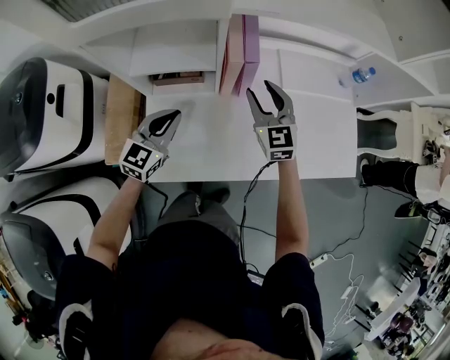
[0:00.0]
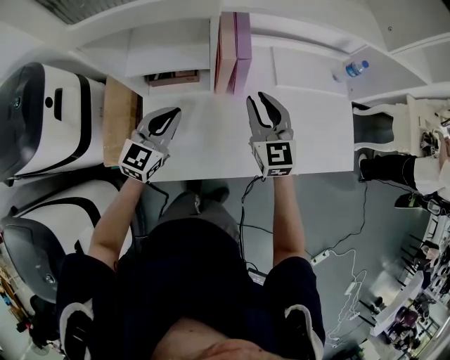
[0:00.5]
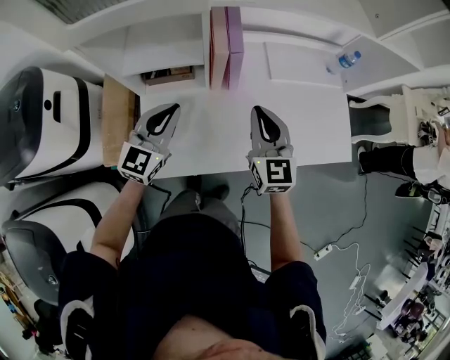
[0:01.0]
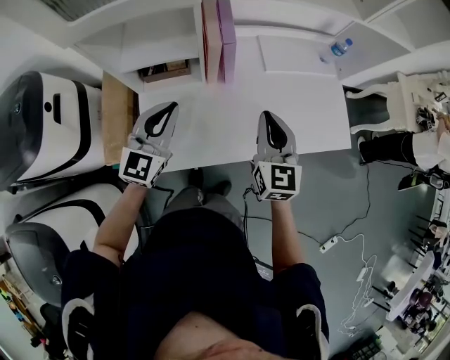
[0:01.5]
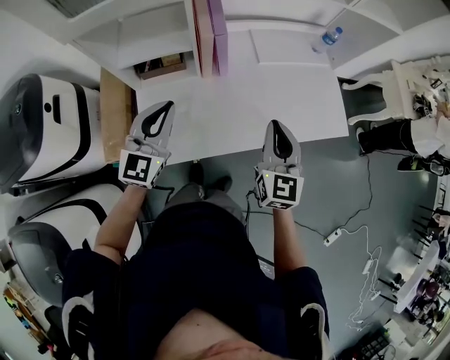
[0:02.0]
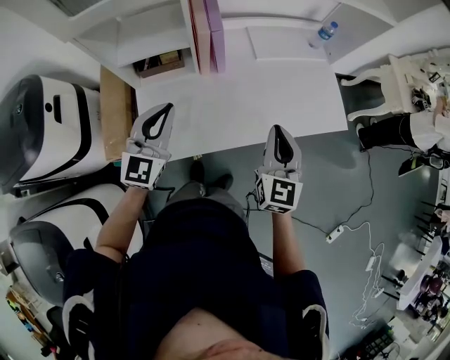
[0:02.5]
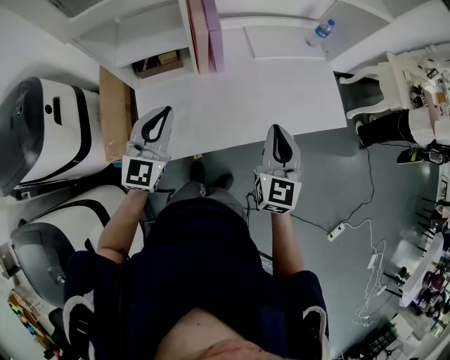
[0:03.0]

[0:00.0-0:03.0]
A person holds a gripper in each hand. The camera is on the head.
0:00.0 to 0:01.5: The left gripper goes approximately 10 cm upward. The right gripper is displaced backward, to the right and upward by roughly 20 cm, rotates roughly 20 degrees, and closes.
0:01.5 to 0:03.0: The right gripper is displaced backward and to the right by roughly 10 cm; the left gripper travels backward by about 5 cm.

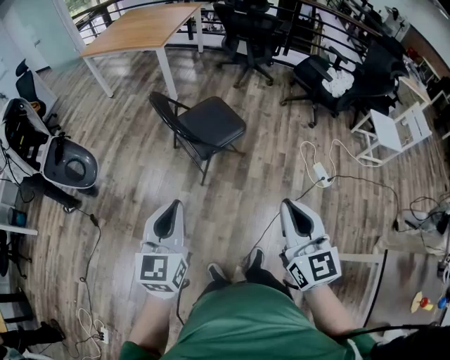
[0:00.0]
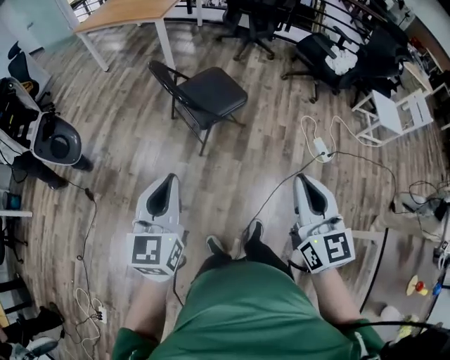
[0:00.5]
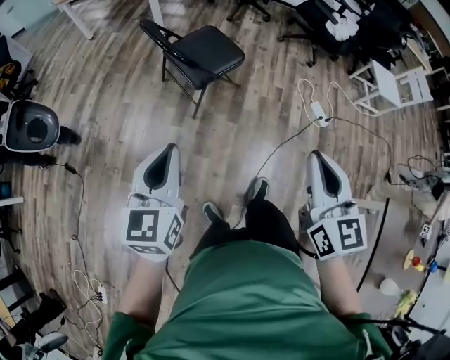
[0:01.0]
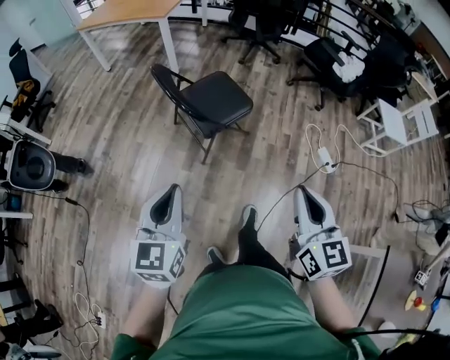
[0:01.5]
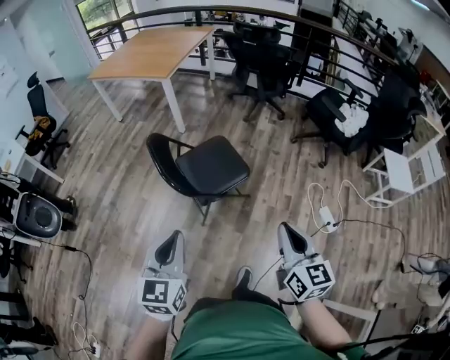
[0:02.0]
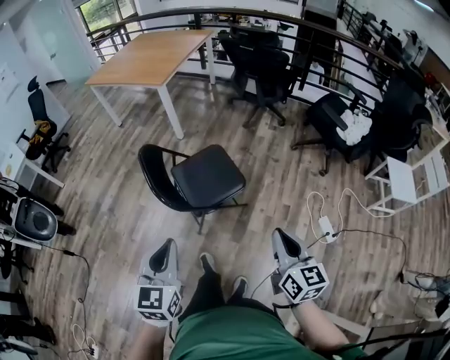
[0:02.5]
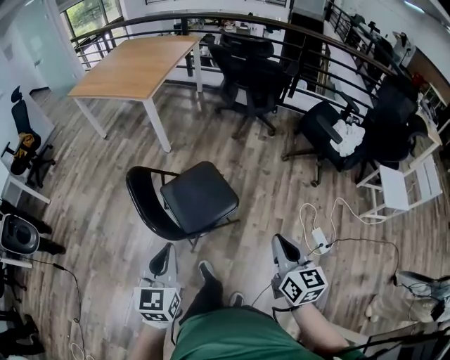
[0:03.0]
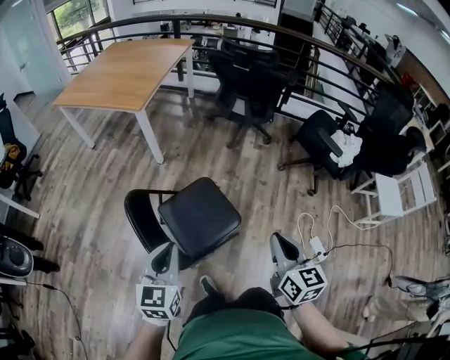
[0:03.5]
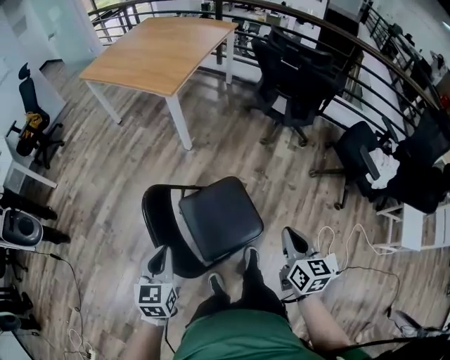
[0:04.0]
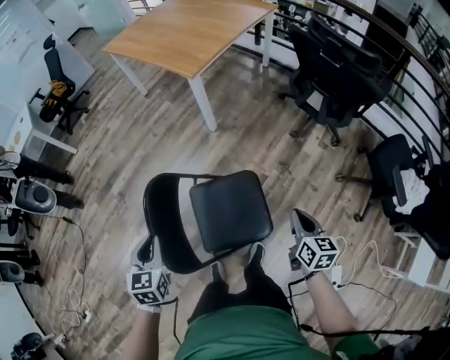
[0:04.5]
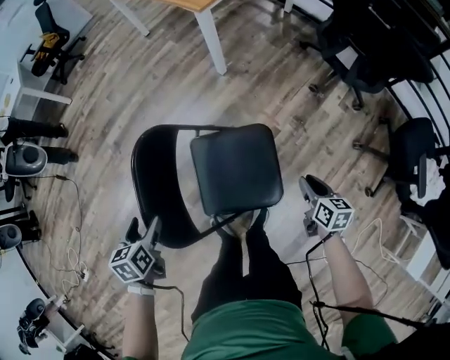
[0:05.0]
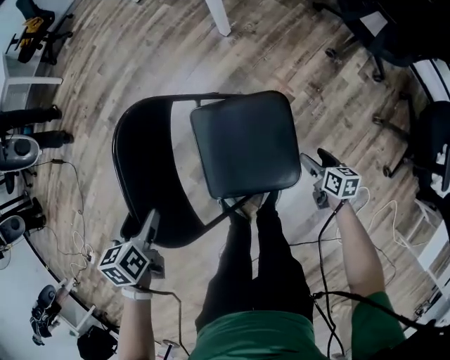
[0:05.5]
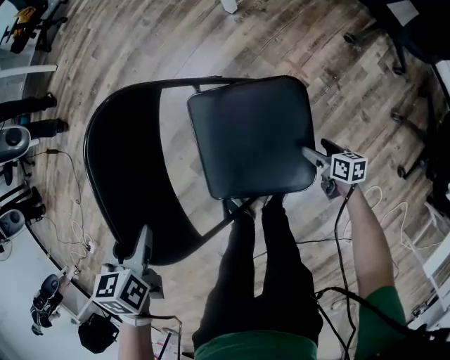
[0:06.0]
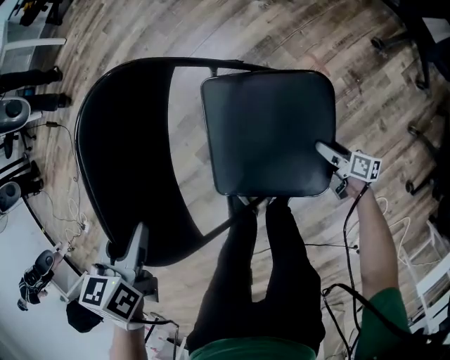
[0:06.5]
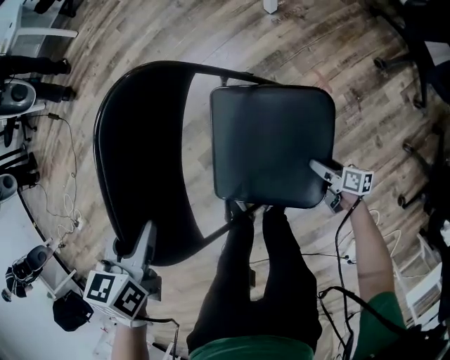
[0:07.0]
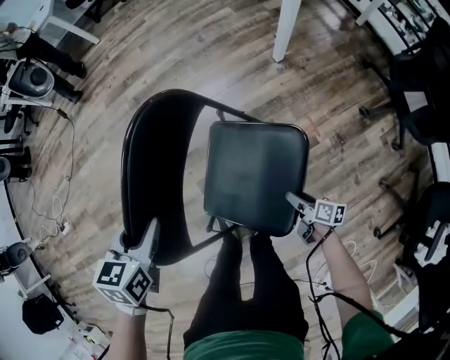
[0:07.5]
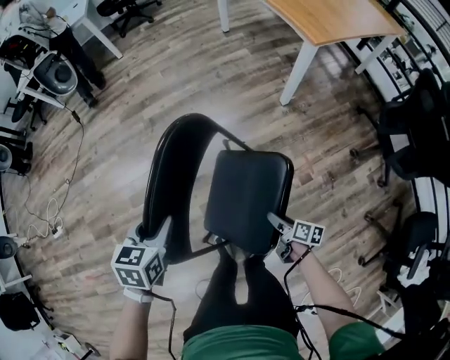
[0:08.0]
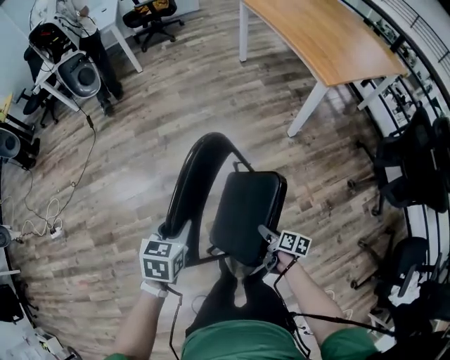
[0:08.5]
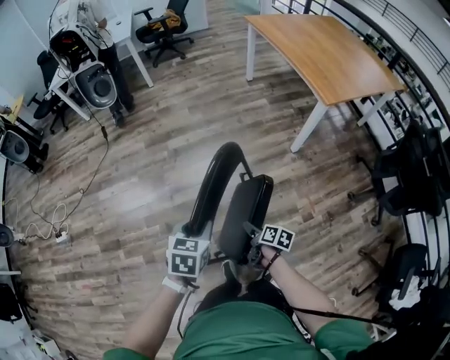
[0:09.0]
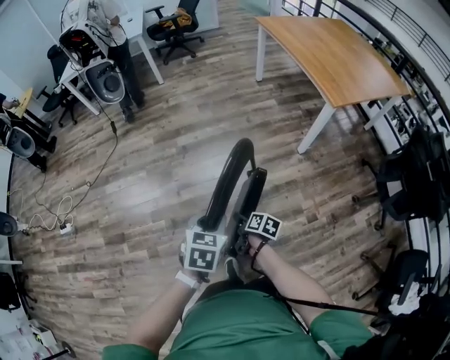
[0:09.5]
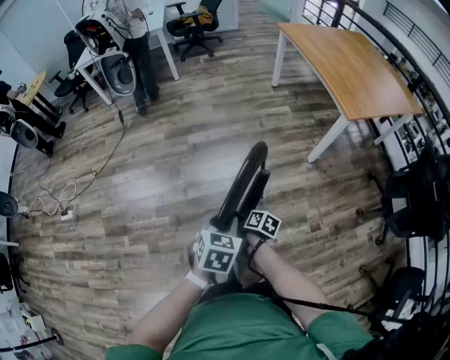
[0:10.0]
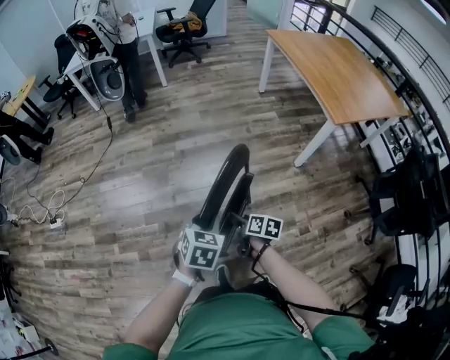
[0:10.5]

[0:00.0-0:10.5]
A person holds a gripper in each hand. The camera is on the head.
0:00.0 to 0:02.0: Both grippers travel together forward and to the right, some 20 cm.
0:02.0 to 0:04.0: Both grippers travel together forward, roughly 40 cm.
0:04.0 to 0:06.5: The right gripper heads downward, covering approximately 60 cm, swivels roughly 60 degrees, and opens its fingers; the left gripper travels downward by about 25 cm, changes its angle by approximately 40 degrees, and opens.
0:06.5 to 0:08.5: The left gripper heads upward and to the left, covering roughly 20 cm, while the right gripper shifts about 40 cm upward and to the left.
0:08.5 to 0:10.5: The right gripper is displaced to the left, upward and forward by approximately 25 cm. Meanwhile the left gripper heads upward, covering about 5 cm.

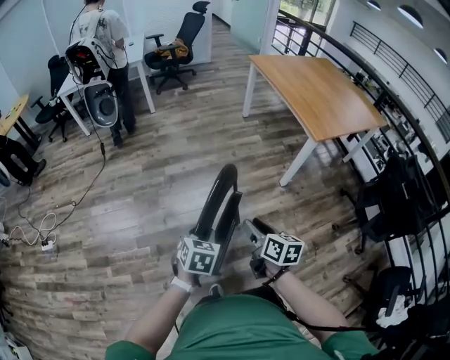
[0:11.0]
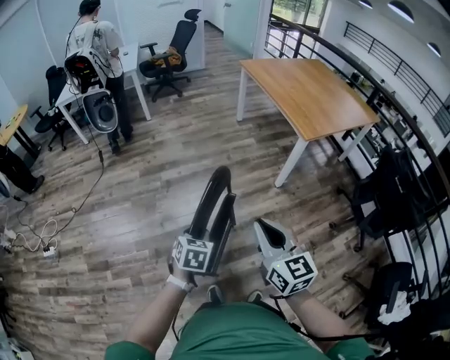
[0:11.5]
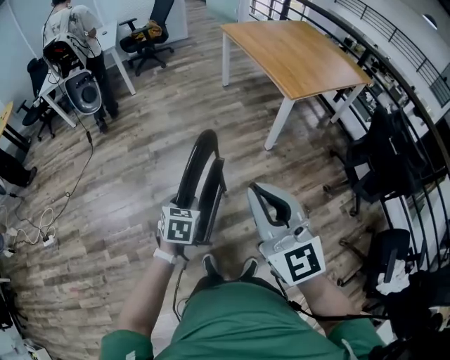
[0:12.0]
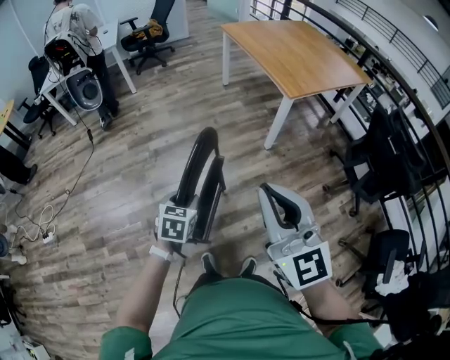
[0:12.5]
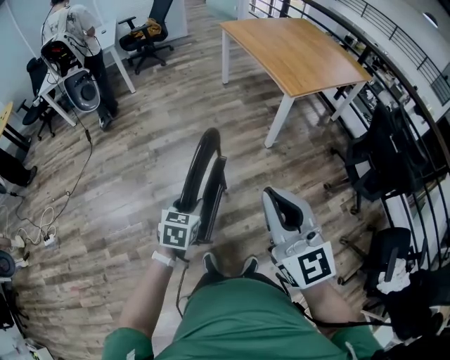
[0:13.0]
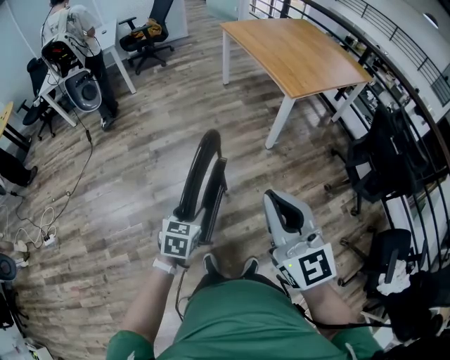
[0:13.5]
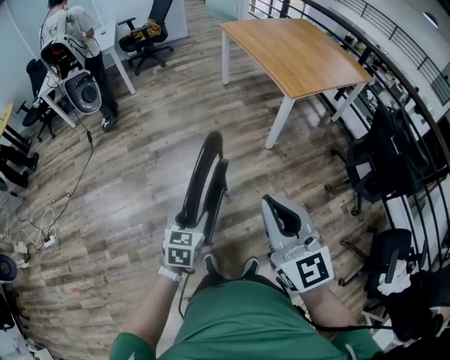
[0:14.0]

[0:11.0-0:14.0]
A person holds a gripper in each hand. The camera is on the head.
0:11.0 to 0:12.5: The right gripper travels upward and backward by some 30 cm, rotates around the line of its fingers by about 50 degrees, counterclockwise from behind, and closes up; the left gripper travels to the right by some 10 cm.
0:12.5 to 0:14.0: The grippers stay close to where they were, moving slightly.

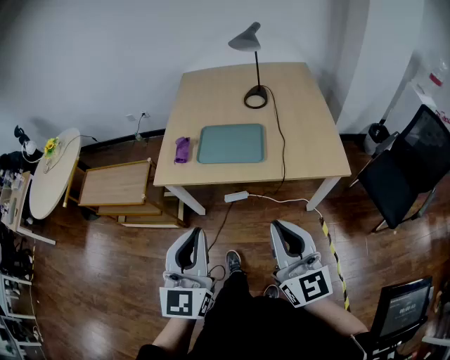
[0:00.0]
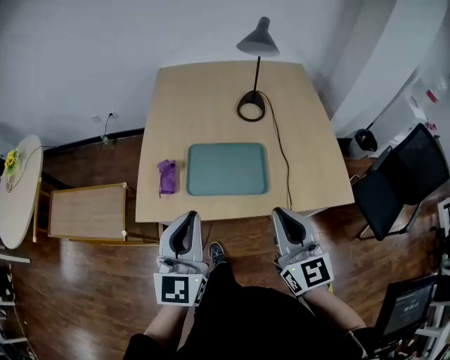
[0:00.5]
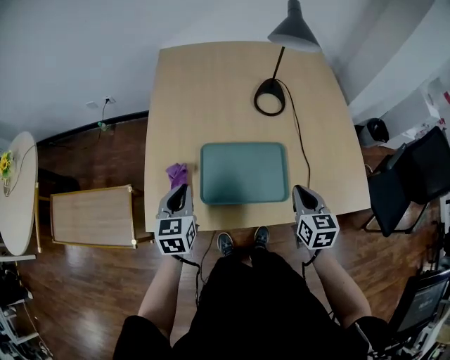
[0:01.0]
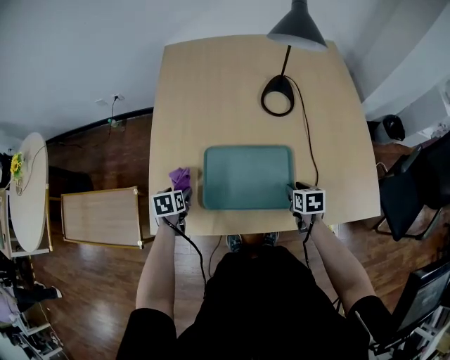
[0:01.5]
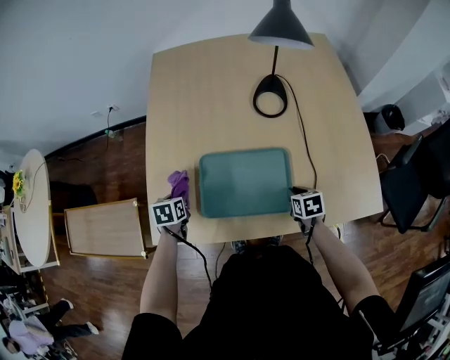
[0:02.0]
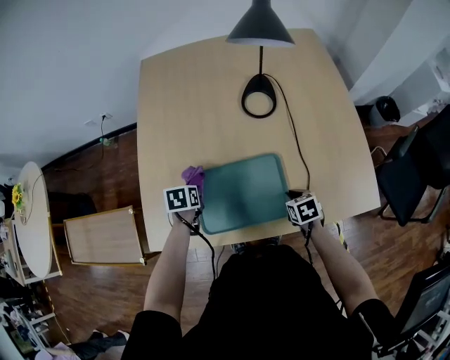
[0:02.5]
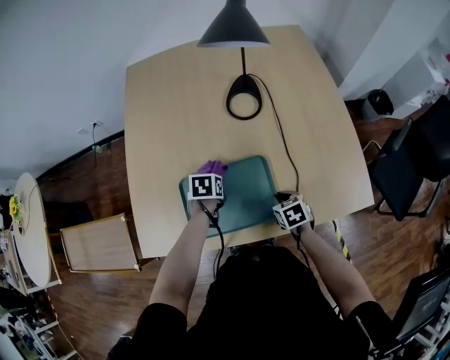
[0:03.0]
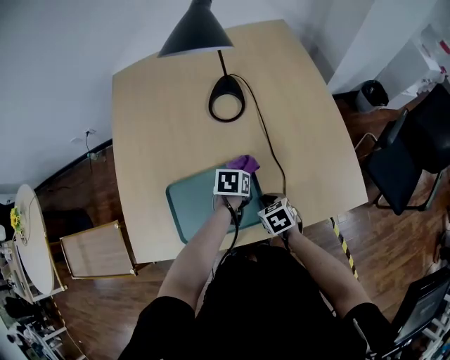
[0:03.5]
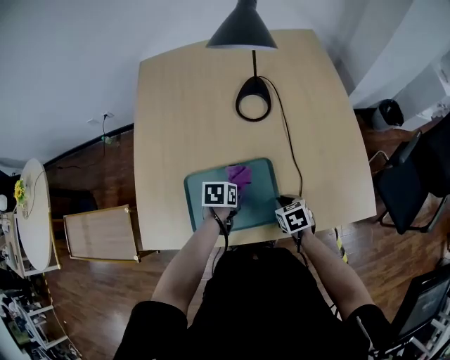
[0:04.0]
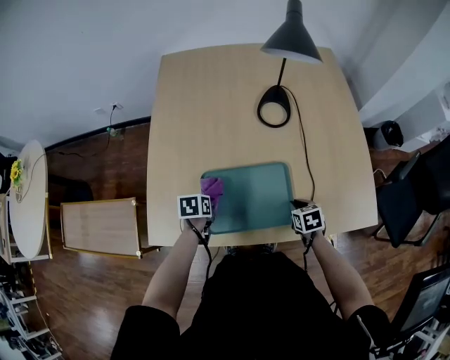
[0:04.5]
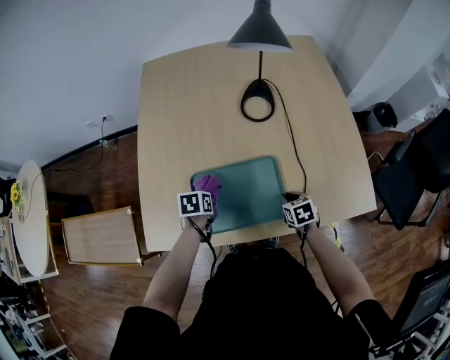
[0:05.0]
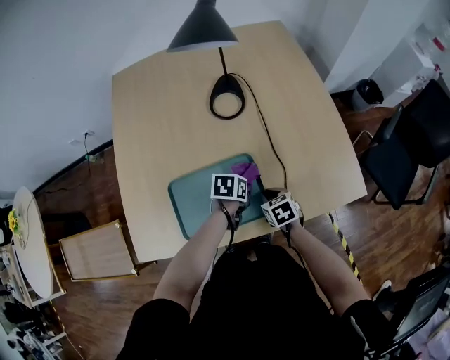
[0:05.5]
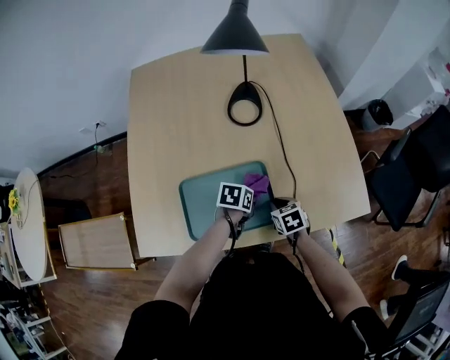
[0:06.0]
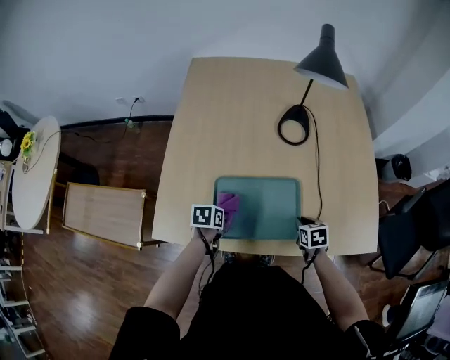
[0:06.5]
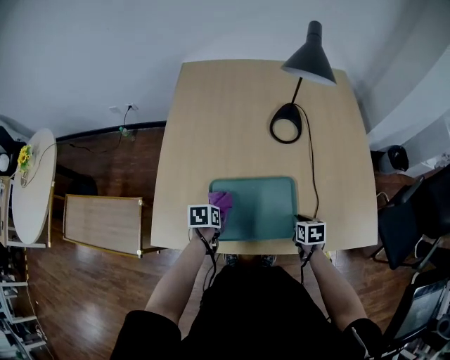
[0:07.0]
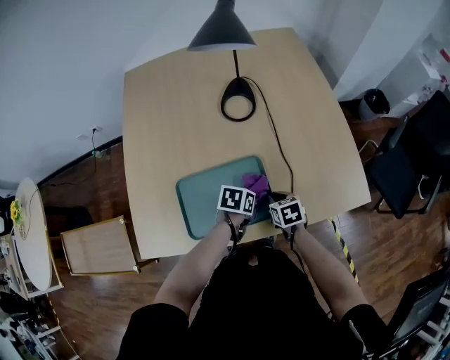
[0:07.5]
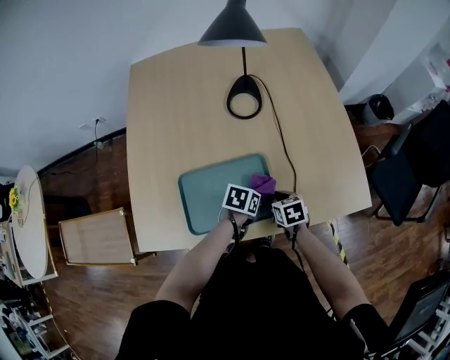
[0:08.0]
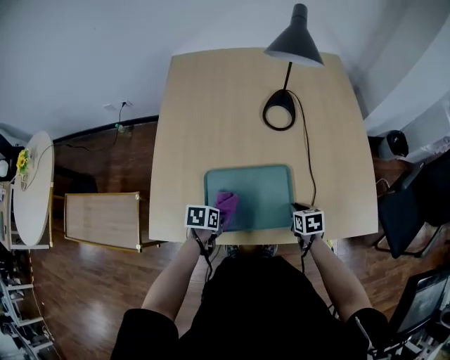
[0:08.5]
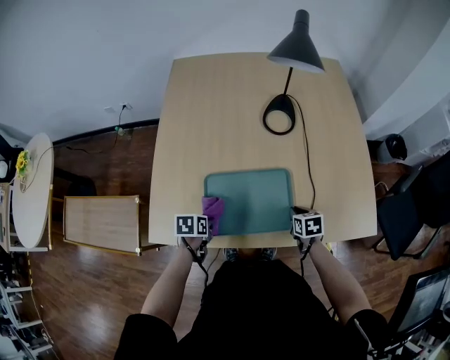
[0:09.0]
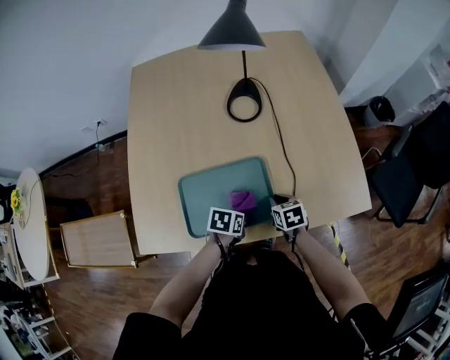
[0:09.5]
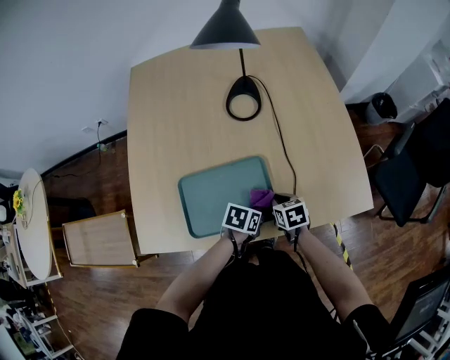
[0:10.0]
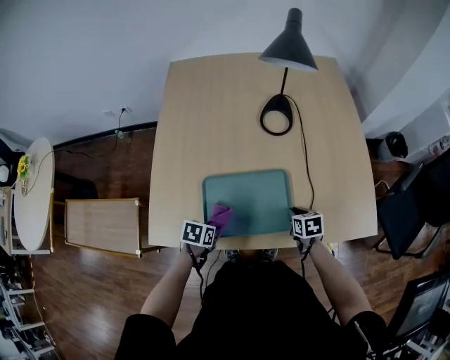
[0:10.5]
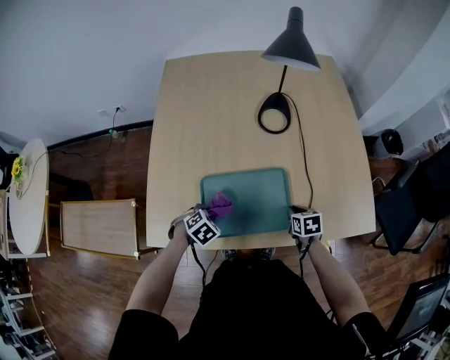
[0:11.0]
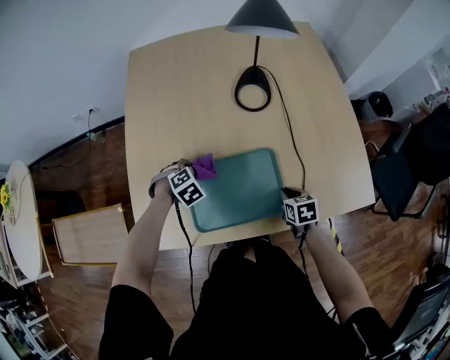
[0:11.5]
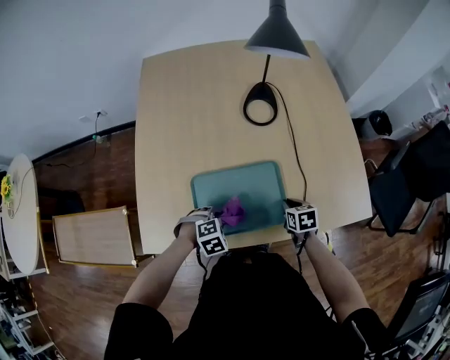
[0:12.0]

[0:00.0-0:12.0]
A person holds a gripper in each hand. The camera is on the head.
0:00.0 to 0:02.0: The right gripper heads downward and forward, covering about 60 cm, tilts its fingers about 70 degrees downward, and opens, then closes once more. The left gripper travels forward, downward and to the left by some 60 cm, tips its fingers downward by approximately 60 degrees, and opens, then closes again.
0:02.0 to 0:04.0: The left gripper is displaced to the right by approximately 25 cm, and rotates approximately 20 degrees.
0:04.0 to 0:06.0: The left gripper moves roughly 15 cm to the left and comes back.
0:06.0 to 0:08.0: The left gripper moves some 20 cm to the left and comes back.
0:08.0 to 0:10.0: The left gripper moves some 25 cm to the left and comes back.
0:10.0 to 0:12.0: The left gripper rolls clockwise, seen from behind, by some 60 degrees.
